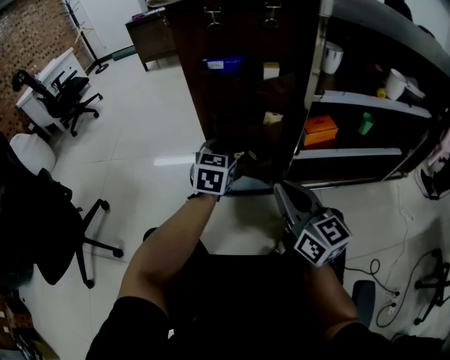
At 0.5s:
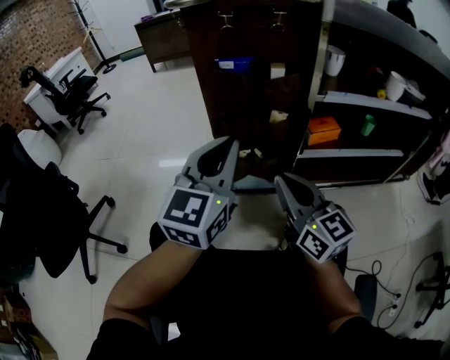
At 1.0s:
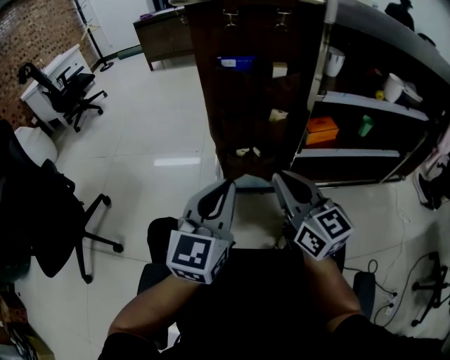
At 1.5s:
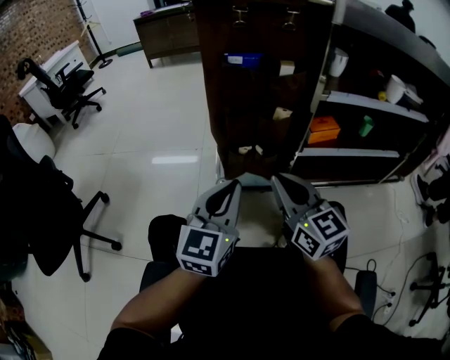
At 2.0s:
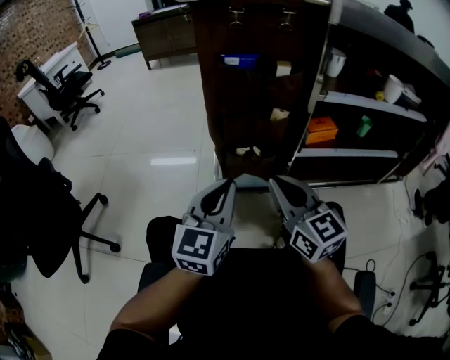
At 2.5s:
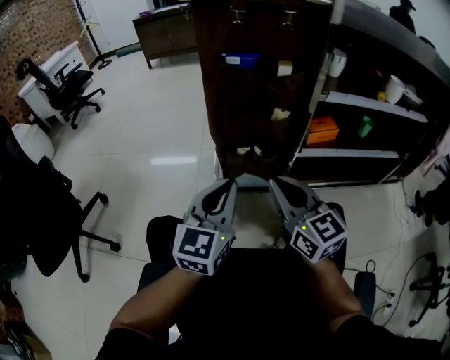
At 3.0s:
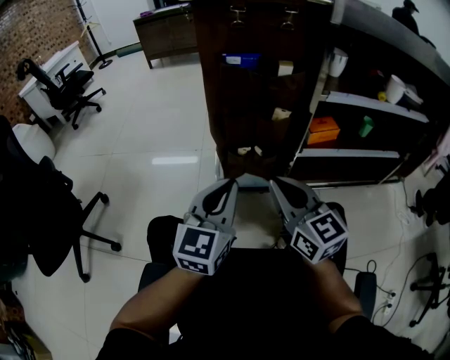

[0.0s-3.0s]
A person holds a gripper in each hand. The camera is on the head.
0.0s to 1.5s: The left gripper goes some 20 cm backward.
1.5s to 3.0s: Both grippers stay put.

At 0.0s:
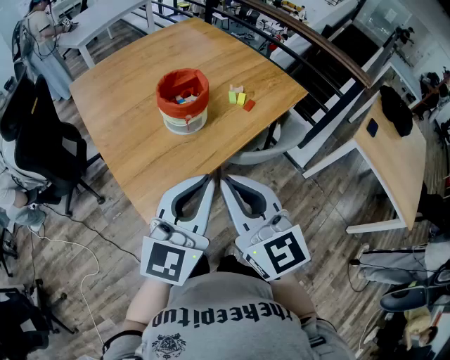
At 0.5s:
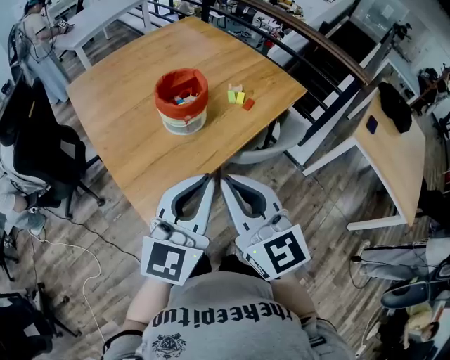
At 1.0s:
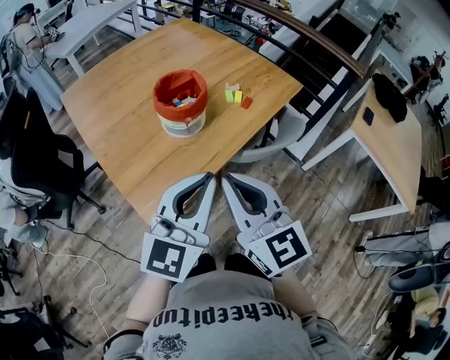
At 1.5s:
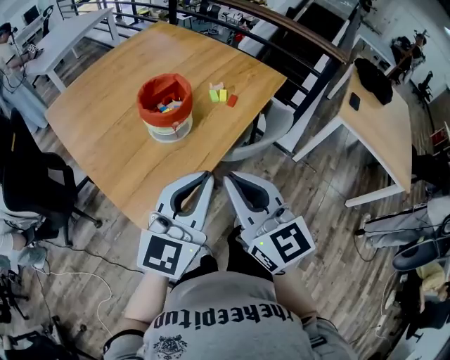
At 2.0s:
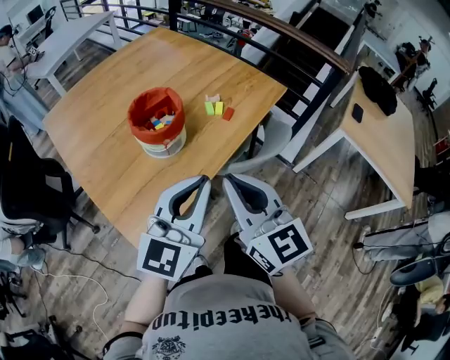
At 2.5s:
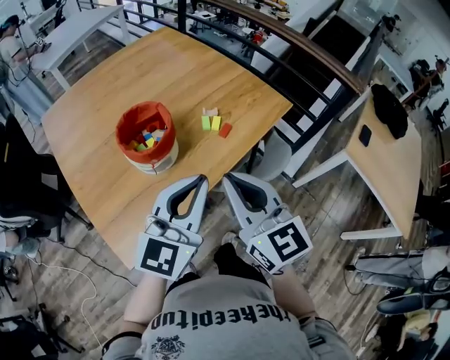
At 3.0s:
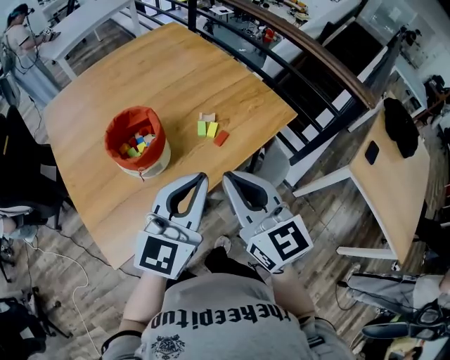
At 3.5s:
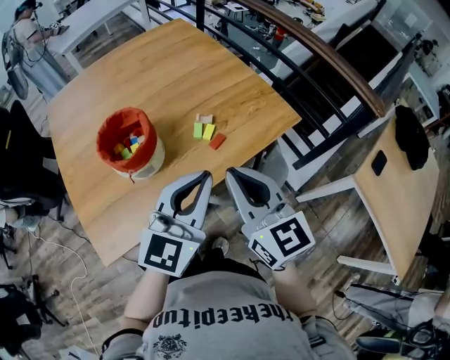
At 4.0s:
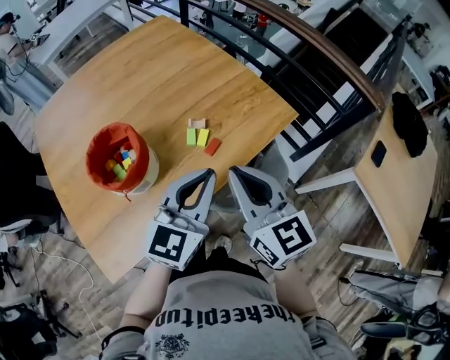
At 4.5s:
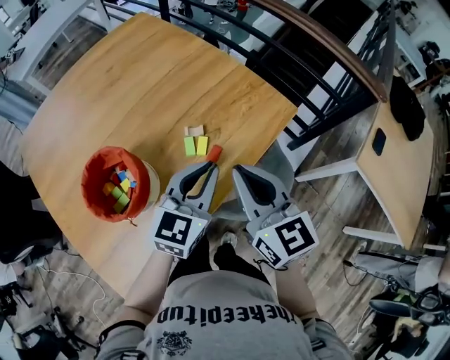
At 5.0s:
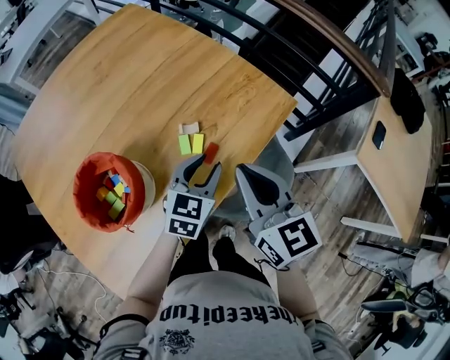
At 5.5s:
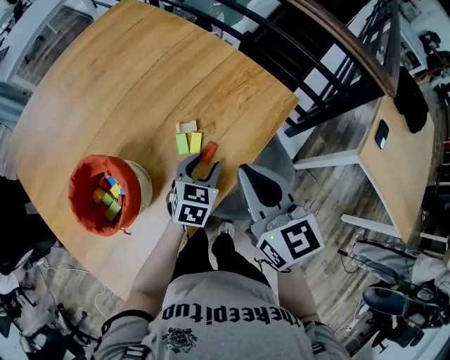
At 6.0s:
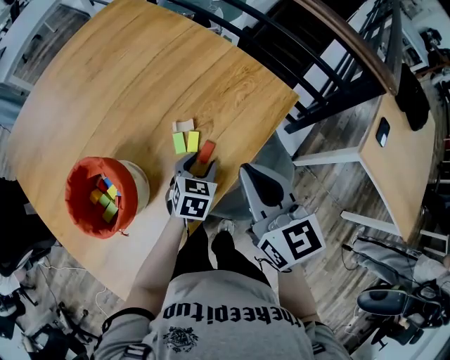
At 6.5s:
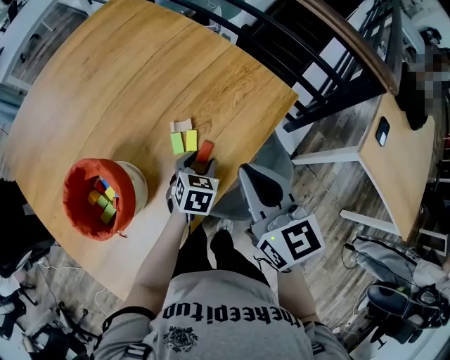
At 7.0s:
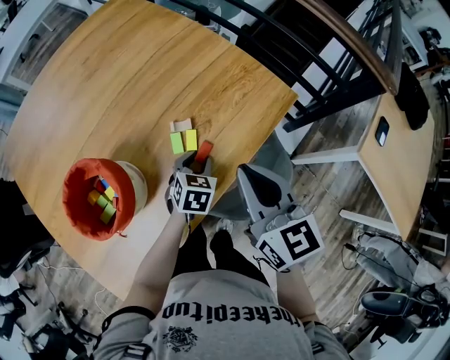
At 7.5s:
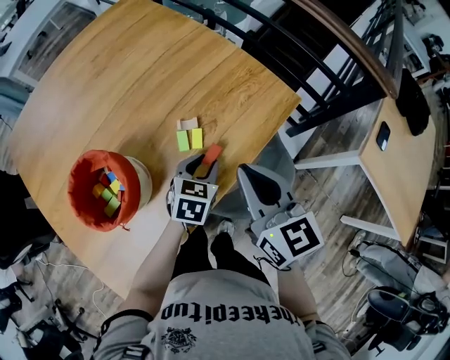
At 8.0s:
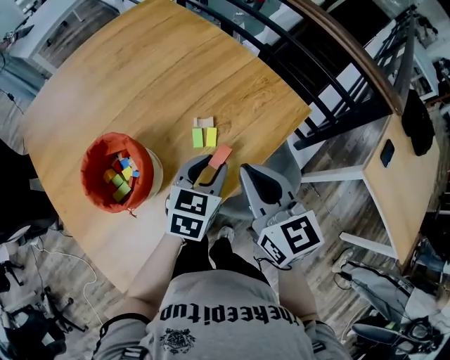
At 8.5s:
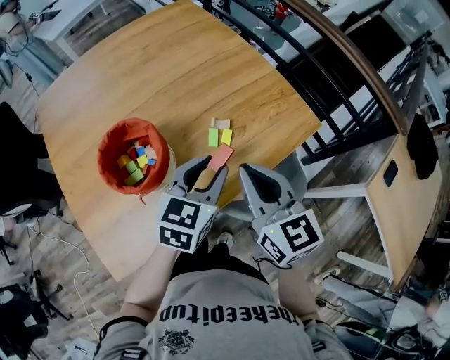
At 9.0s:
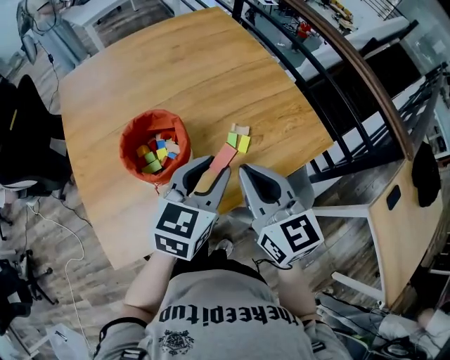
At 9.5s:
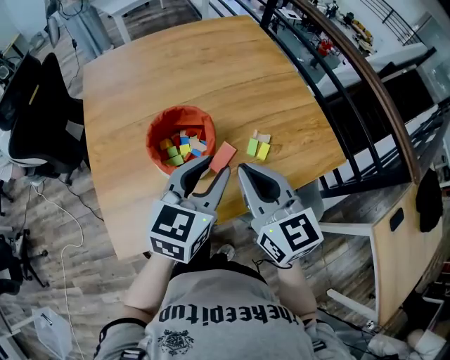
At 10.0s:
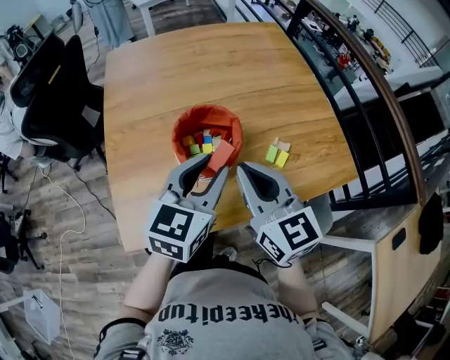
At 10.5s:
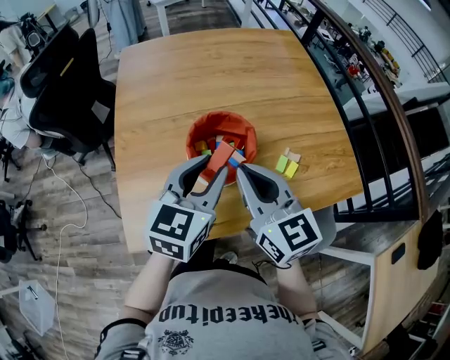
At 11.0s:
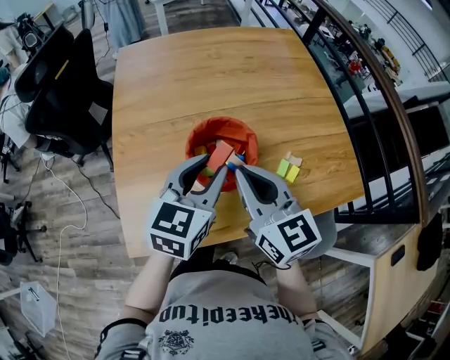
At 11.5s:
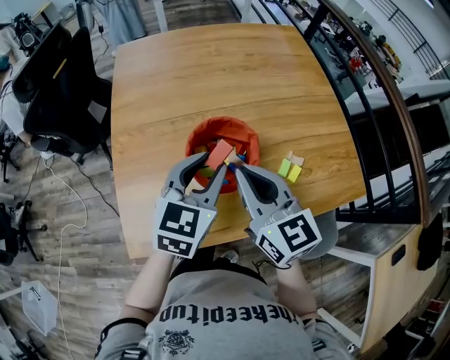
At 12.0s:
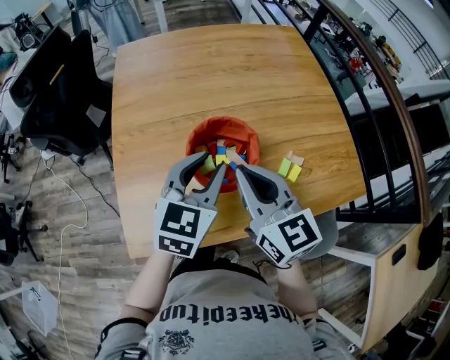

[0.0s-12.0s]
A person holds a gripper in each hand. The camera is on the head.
0.0s to 2.0s: The grippers both shift forward by approximately 5 cm.
2.0s to 4.0s: The two grippers go approximately 25 cm forward and to the right.
4.0s to 6.0s: The right gripper moves forward, some 5 cm; the left gripper travels downward and forward by approximately 25 cm, tilts its fingers about 40 degrees downward, and opens its fingers.
6.0s to 8.0s: The left gripper heads upward, covering roughly 10 cm.
8.0s to 10.0s: The left gripper shifts by approximately 25 cm, and swivels approximately 30 degrees, while the right gripper shifts by approximately 20 cm, and swivels roughly 30 degrees.
10.0s to 12.0s: The left gripper ends up roughly 5 cm from where it was. Meanwhile the right gripper ends up about 5 cm from where it was.

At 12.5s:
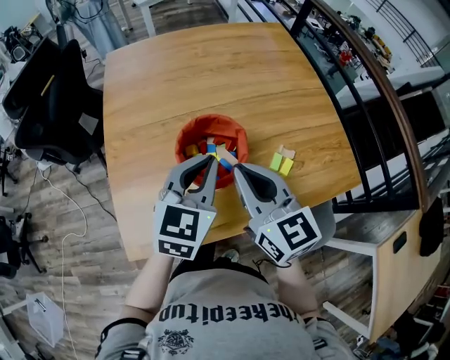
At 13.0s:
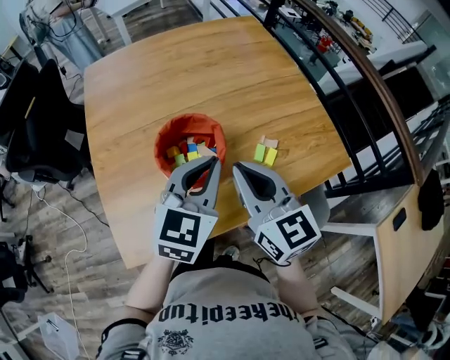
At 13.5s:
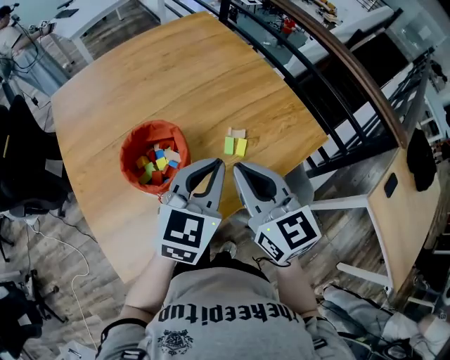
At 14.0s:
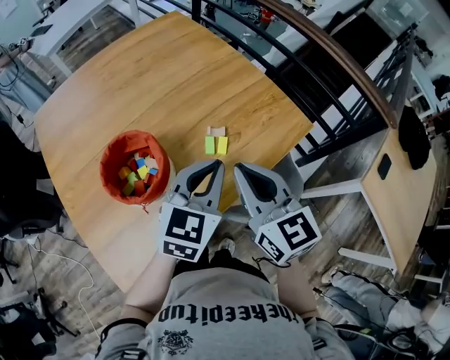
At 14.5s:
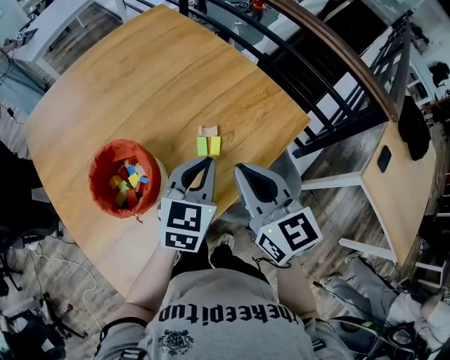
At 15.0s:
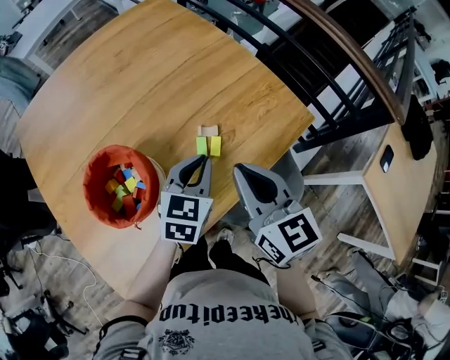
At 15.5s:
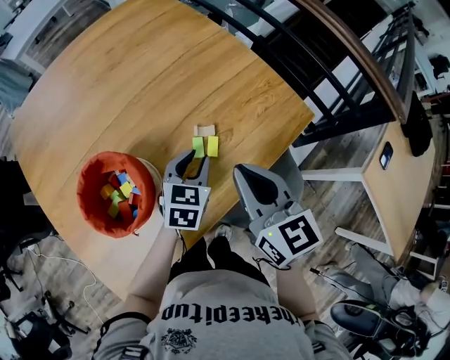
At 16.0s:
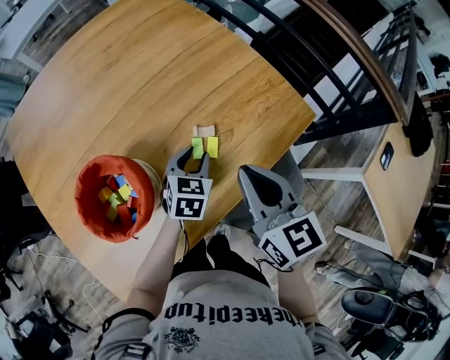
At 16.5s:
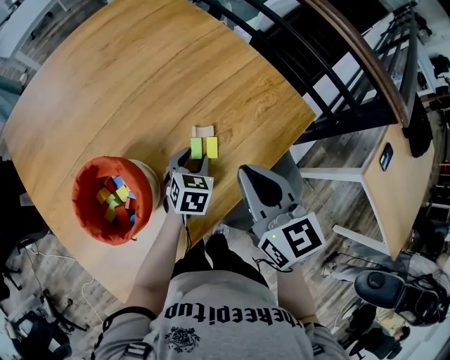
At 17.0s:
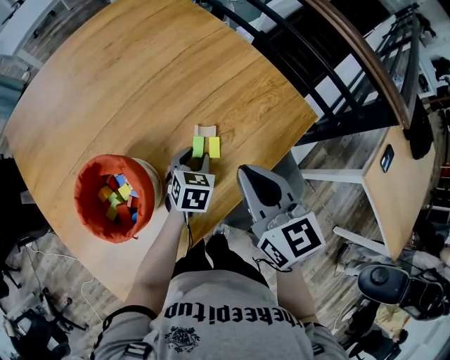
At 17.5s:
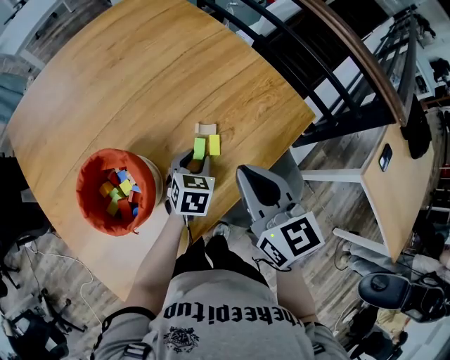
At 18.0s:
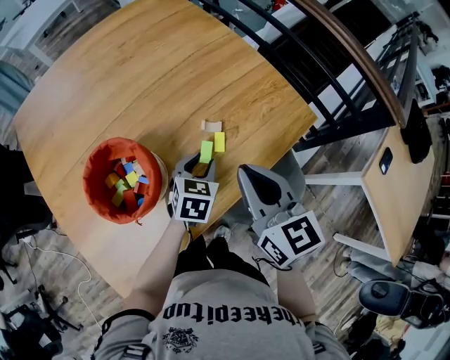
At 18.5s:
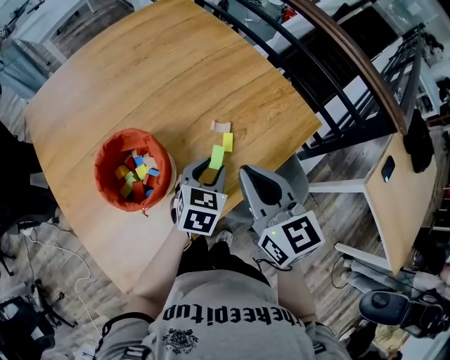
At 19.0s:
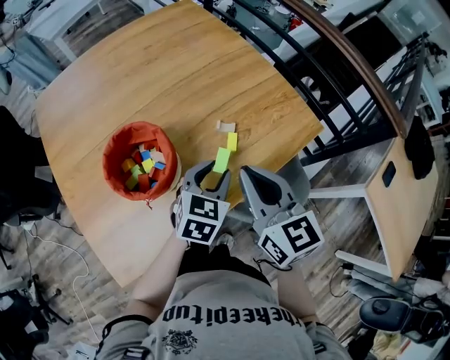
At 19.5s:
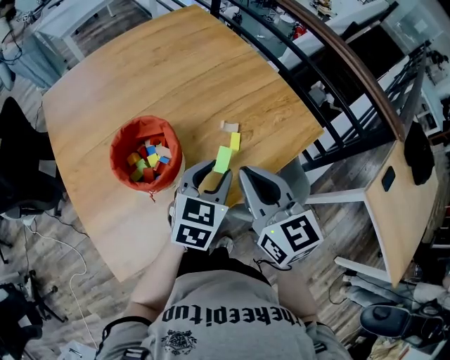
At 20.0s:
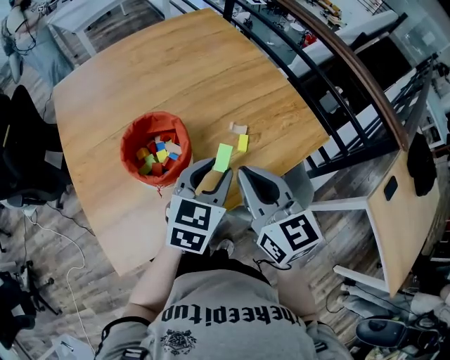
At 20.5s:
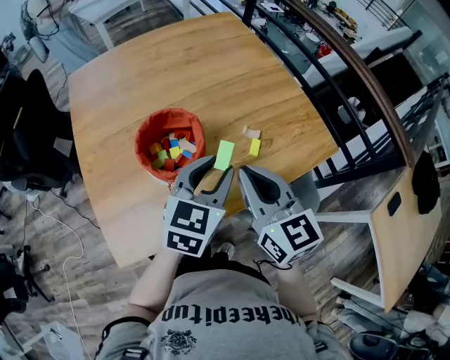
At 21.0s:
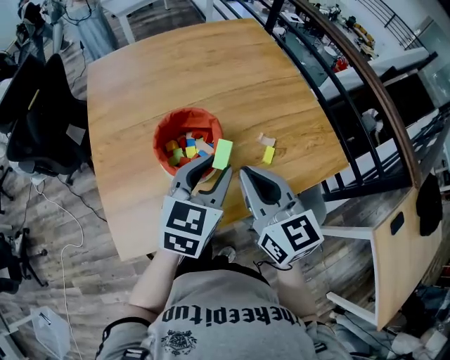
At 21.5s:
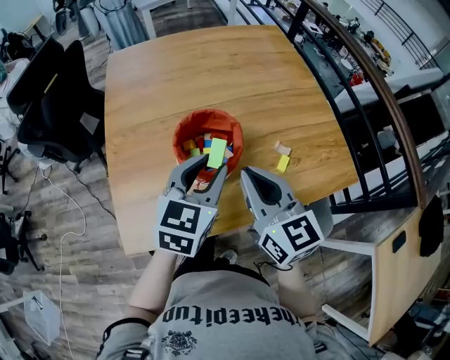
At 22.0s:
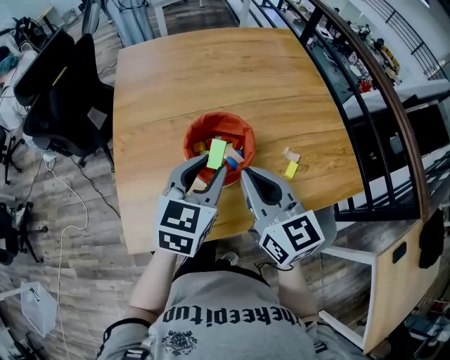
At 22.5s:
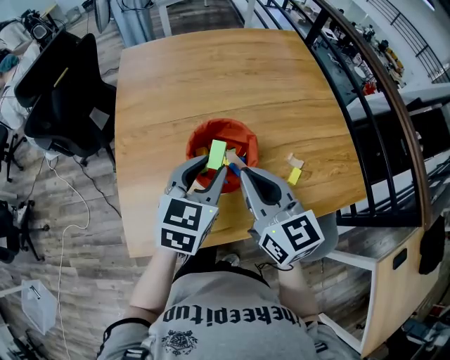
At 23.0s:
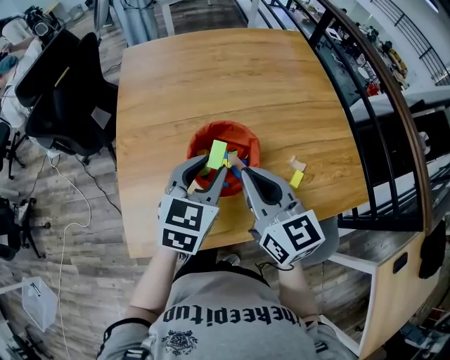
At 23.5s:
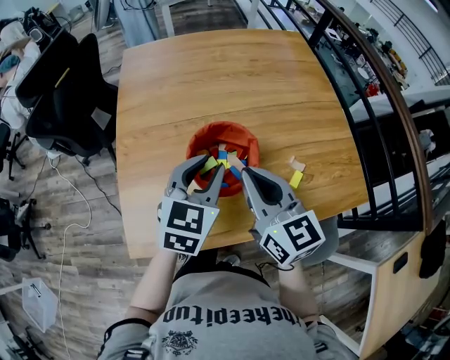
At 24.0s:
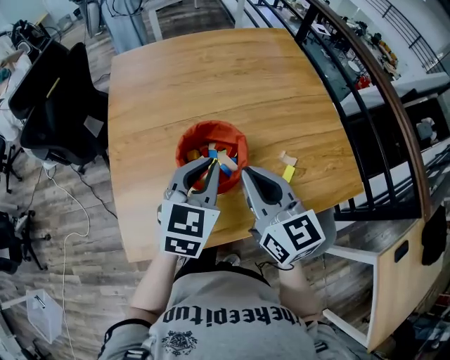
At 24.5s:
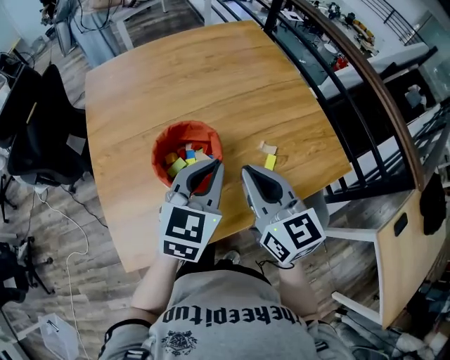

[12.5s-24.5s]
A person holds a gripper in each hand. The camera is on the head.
12.5s to 14.5s: The right gripper changes place by roughly 20 cm, and rotates some 30 degrees; the left gripper changes place by about 20 cm, and rotates some 30 degrees.
14.5s to 16.5s: The left gripper is displaced downward by roughly 20 cm, changes its angle by roughly 20 degrees, and opens up. Meanwhile the right gripper changes place by about 5 cm.
16.5s to 18.5s: The right gripper ends up some 5 cm from where it was, while the left gripper heads upward and backward, covering approximately 10 cm.
18.5s to 20.5s: The left gripper is displaced upward and to the left by some 15 cm; the right gripper heads to the left, covering approximately 5 cm.
20.5s to 22.5s: The right gripper is displaced to the left and forward by about 10 cm. Meanwhile the left gripper moves to the left, approximately 15 cm.
22.5s to 24.5s: Both grippers move to the right, some 10 cm. The left gripper closes its fingers.
